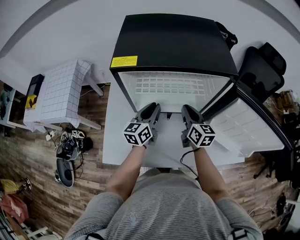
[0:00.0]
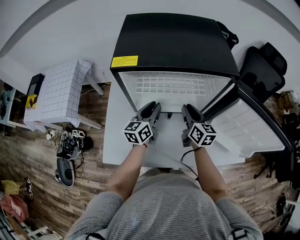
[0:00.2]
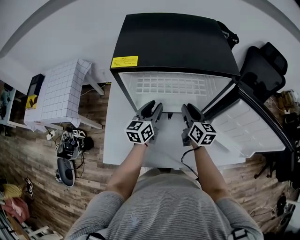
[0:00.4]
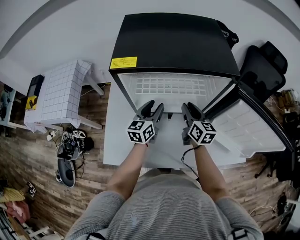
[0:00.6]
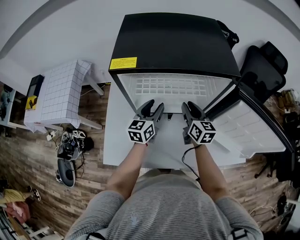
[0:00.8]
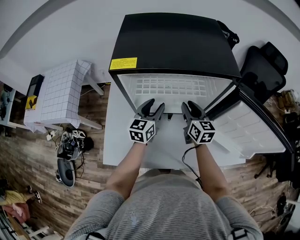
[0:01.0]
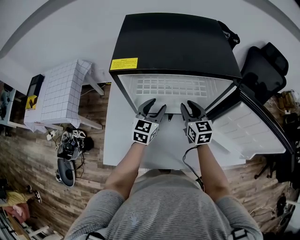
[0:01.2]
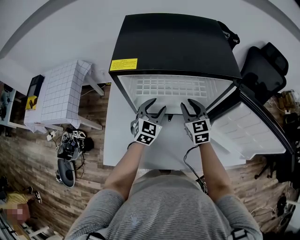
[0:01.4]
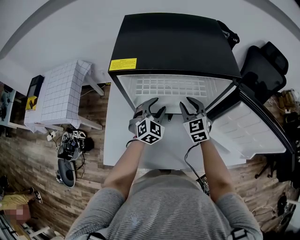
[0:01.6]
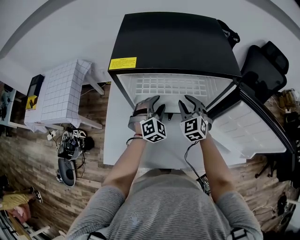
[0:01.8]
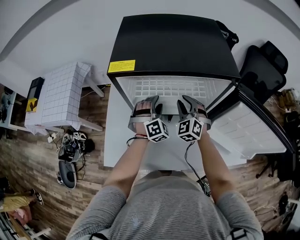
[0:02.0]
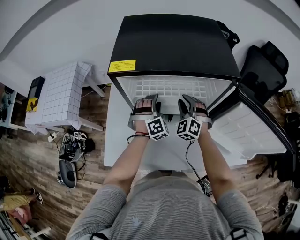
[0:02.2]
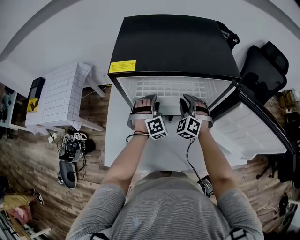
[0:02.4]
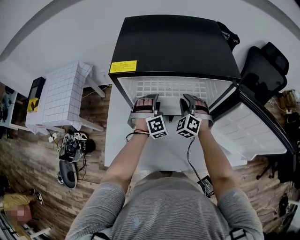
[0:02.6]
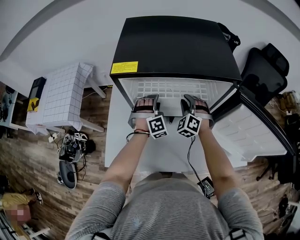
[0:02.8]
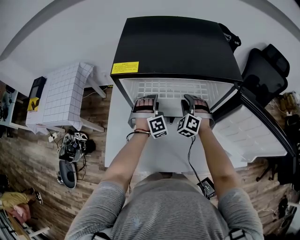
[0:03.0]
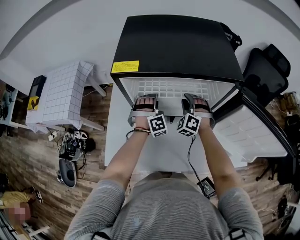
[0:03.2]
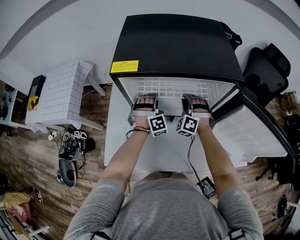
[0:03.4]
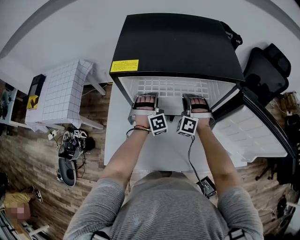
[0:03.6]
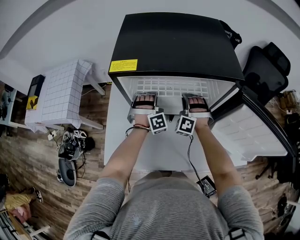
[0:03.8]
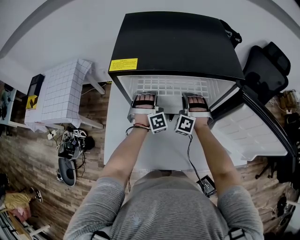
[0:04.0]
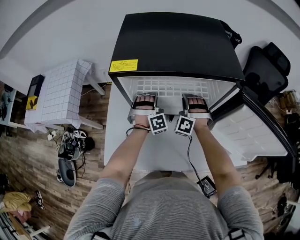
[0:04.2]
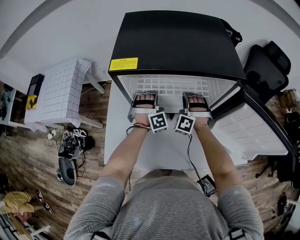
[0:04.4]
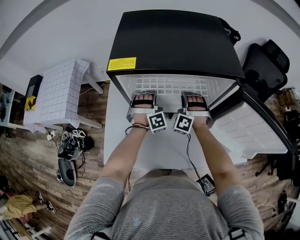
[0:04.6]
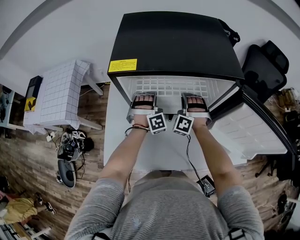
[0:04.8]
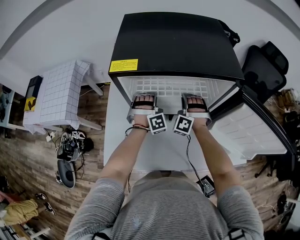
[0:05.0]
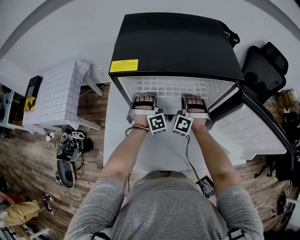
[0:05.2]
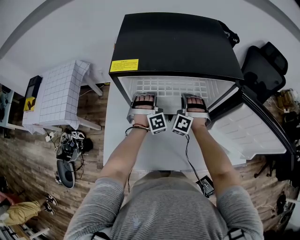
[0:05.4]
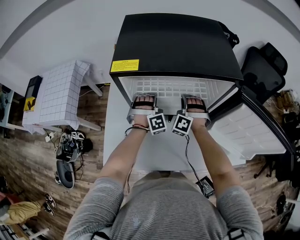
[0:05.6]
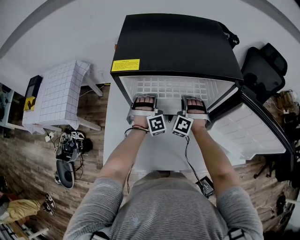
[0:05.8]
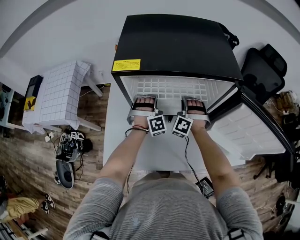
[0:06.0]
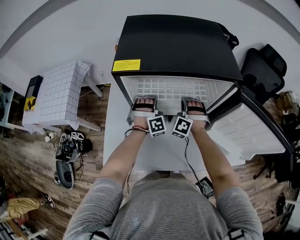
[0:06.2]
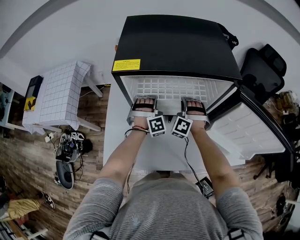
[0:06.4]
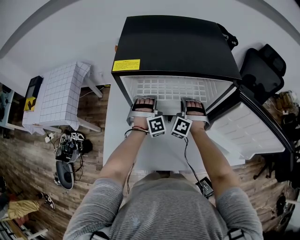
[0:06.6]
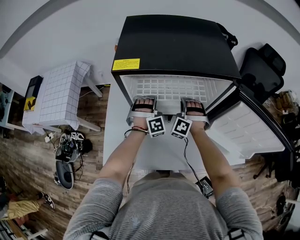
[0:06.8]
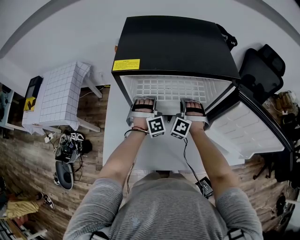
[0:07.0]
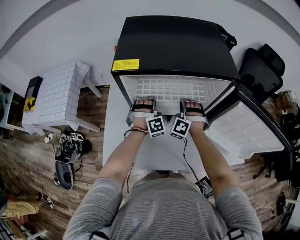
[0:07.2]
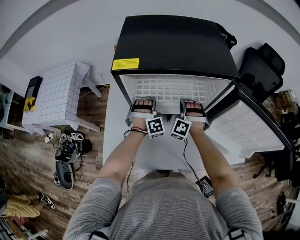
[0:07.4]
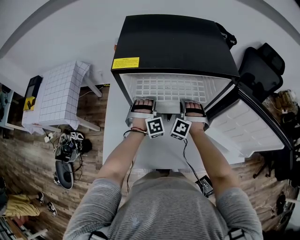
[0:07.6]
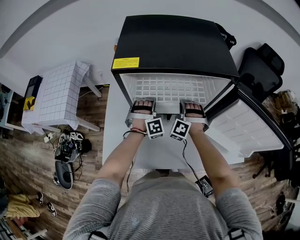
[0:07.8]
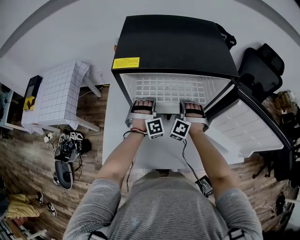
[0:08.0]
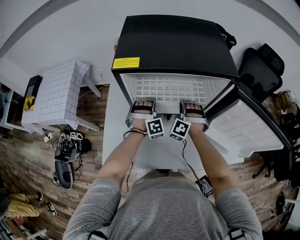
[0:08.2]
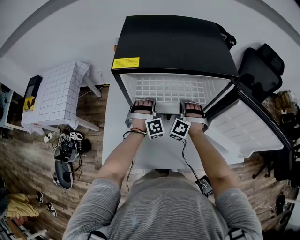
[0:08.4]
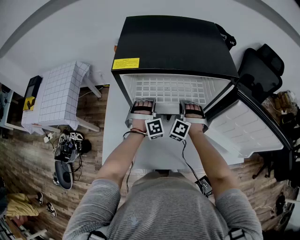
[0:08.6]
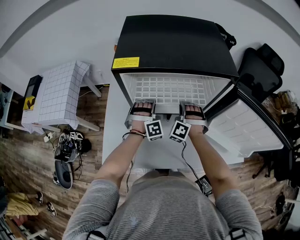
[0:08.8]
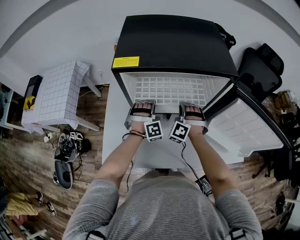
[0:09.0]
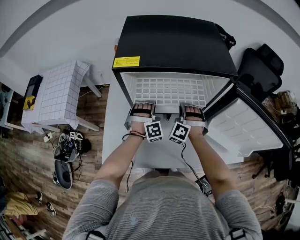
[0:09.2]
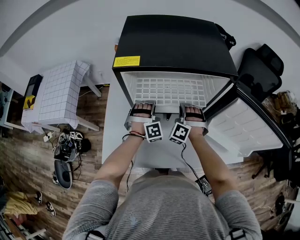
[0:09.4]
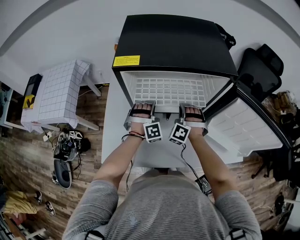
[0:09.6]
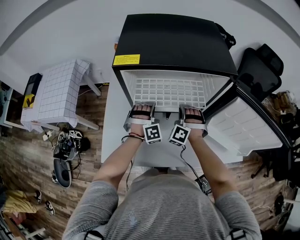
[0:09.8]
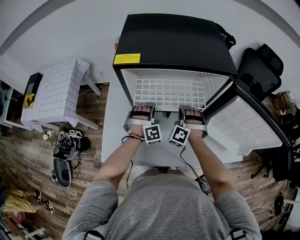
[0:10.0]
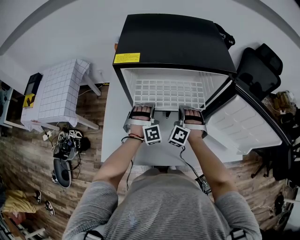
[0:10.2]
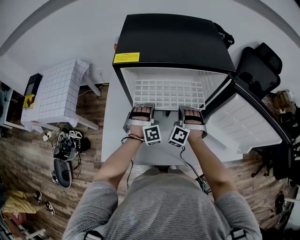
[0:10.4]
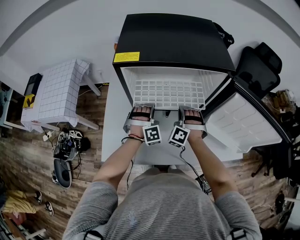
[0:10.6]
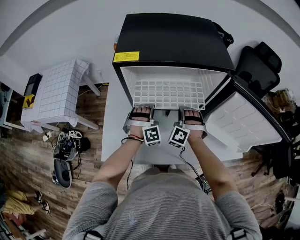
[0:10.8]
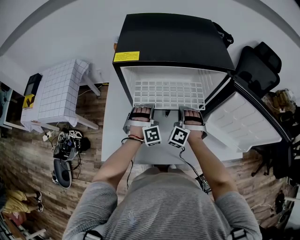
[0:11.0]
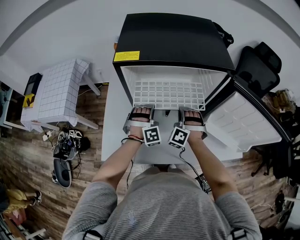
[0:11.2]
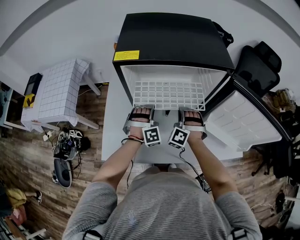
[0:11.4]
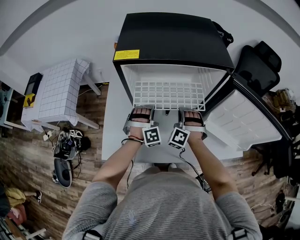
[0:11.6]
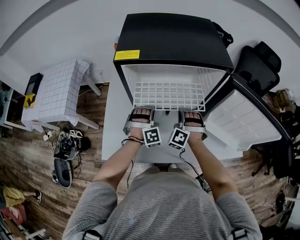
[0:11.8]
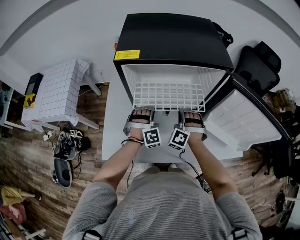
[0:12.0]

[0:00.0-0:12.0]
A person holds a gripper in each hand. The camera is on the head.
0:00.0 to 0:01.6: The left gripper rolls clockwise, seen from behind, by roughly 60 degrees, and opens; the right gripper twists some 40 degrees counterclockwise, seen from behind, and opens.
0:01.6 to 0:03.0: The right gripper ends up roughly 5 cm from where it was, and twists some 40 degrees counterclockwise, seen from behind. Meanwhile the left gripper moves about 5 cm, and rotates some 40 degrees.
0:03.0 to 0:04.4: The left gripper closes its fingers. Meanwhile the right gripper changes its angle by about 20 degrees.
0:04.4 to 0:09.0: The grippers stay close to where they were, moving slightly.
0:09.0 to 0:10.4: The grippers make only small movements.
0:10.4 to 0:12.0: The grippers make only small movements.

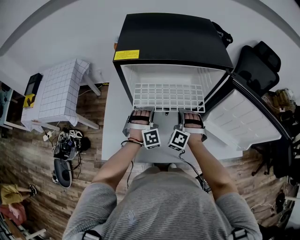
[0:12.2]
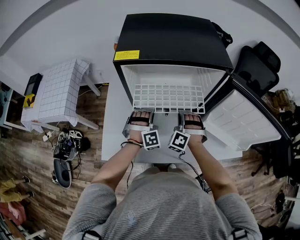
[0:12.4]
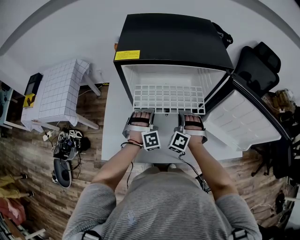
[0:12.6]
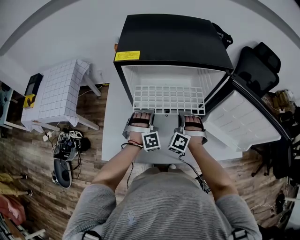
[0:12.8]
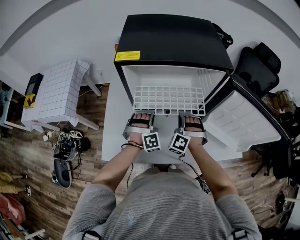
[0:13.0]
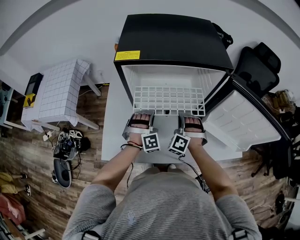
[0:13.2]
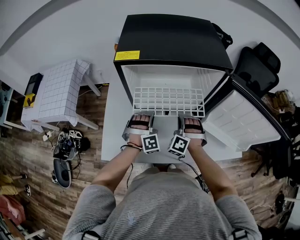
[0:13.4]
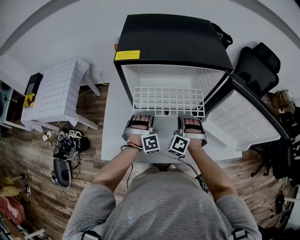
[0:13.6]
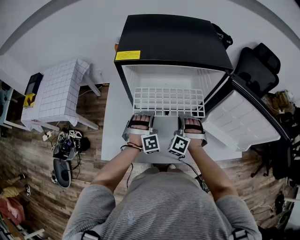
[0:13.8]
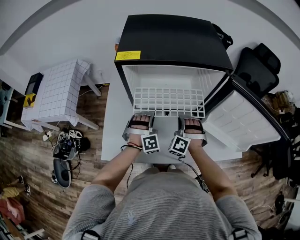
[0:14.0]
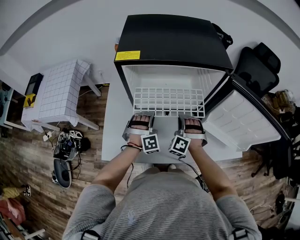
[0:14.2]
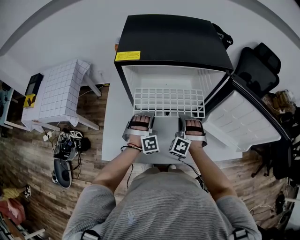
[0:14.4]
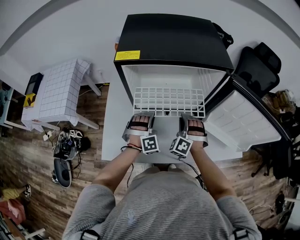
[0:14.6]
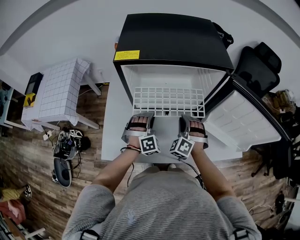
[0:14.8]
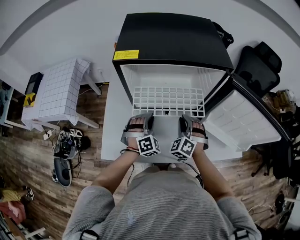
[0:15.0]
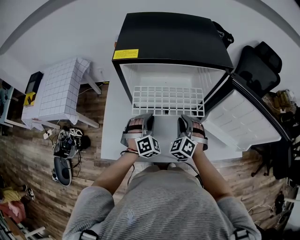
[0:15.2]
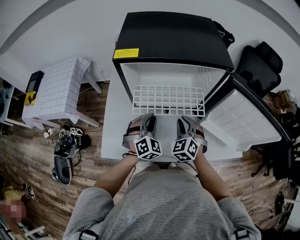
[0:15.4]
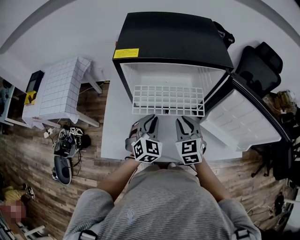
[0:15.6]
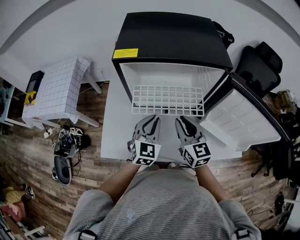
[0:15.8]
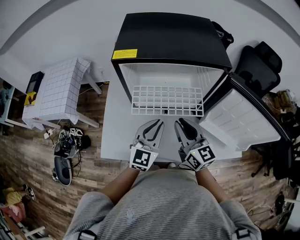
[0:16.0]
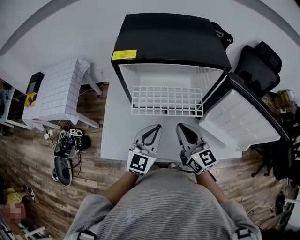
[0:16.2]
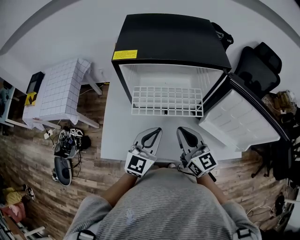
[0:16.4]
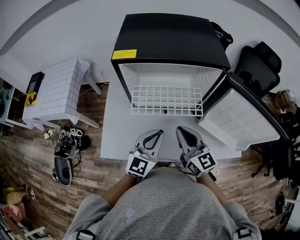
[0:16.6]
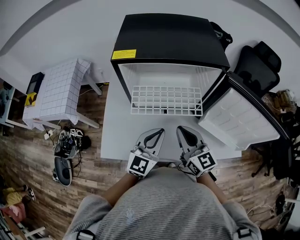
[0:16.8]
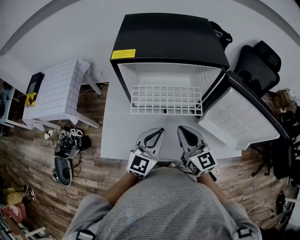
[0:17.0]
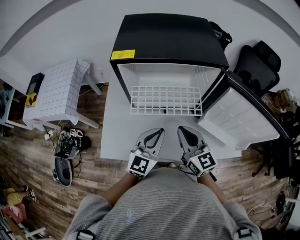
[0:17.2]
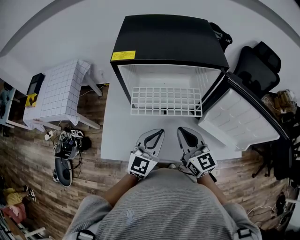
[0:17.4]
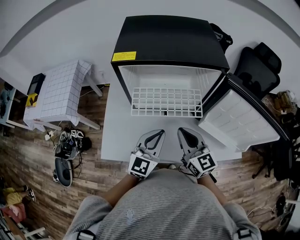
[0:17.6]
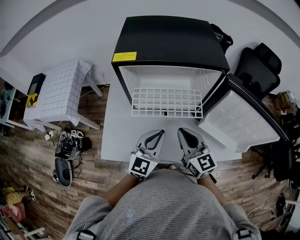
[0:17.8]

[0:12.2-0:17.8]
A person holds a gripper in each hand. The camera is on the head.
0:12.2 to 0:13.6: There are only small adjustments of the grippers.
0:13.6 to 0:15.0: The right gripper swivels roughly 20 degrees.
0:15.0 to 0:16.4: The two grippers go approximately 15 cm upward and backward. The left gripper rotates around the line of its fingers by some 60 degrees, counterclockwise from behind, while the right gripper rotates around the line of its fingers by approximately 60 degrees, clockwise from behind.
0:16.4 to 0:17.8: The grippers move only a little.

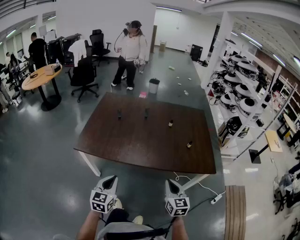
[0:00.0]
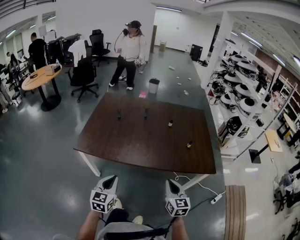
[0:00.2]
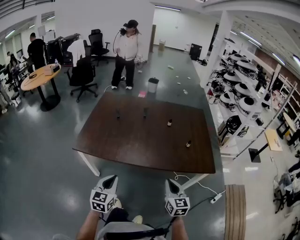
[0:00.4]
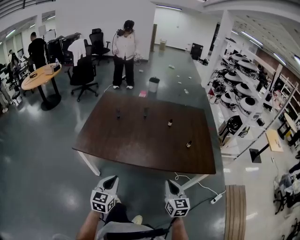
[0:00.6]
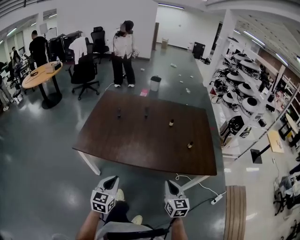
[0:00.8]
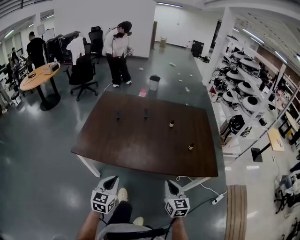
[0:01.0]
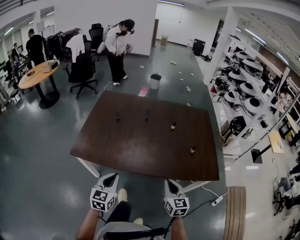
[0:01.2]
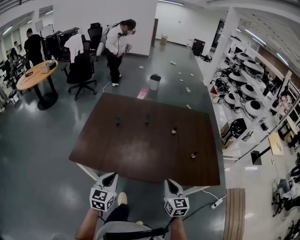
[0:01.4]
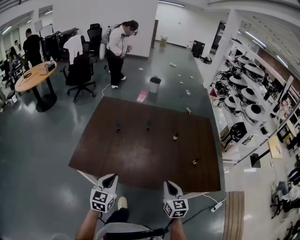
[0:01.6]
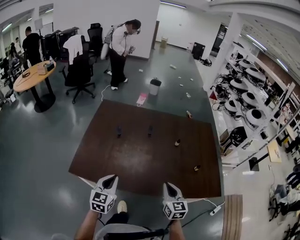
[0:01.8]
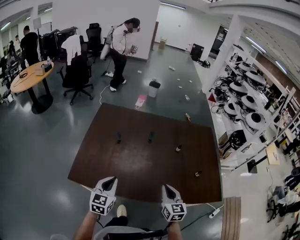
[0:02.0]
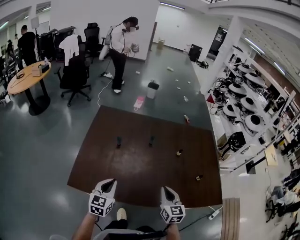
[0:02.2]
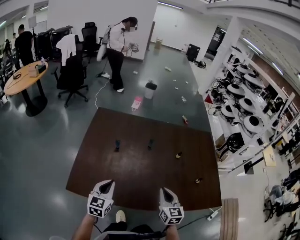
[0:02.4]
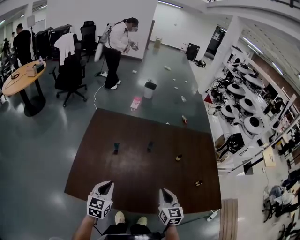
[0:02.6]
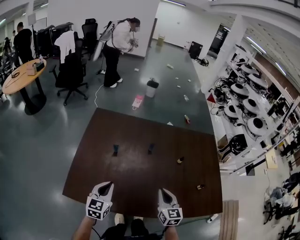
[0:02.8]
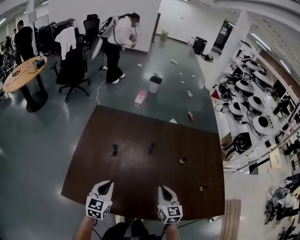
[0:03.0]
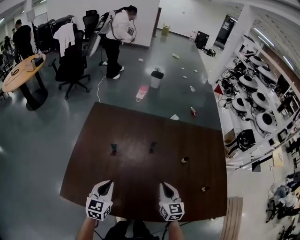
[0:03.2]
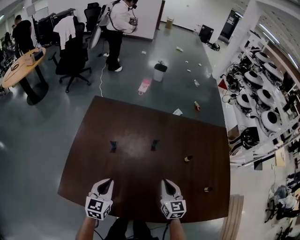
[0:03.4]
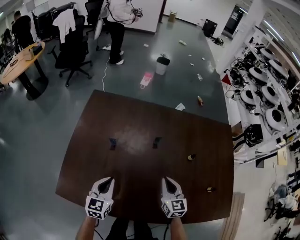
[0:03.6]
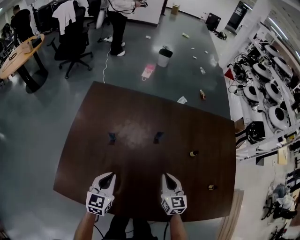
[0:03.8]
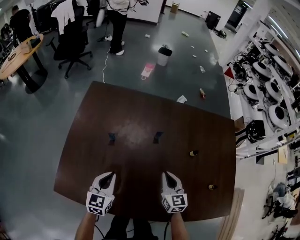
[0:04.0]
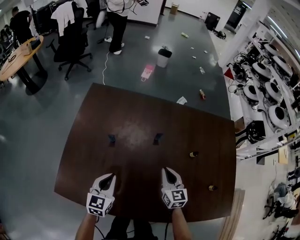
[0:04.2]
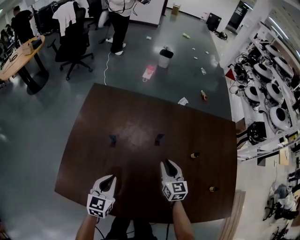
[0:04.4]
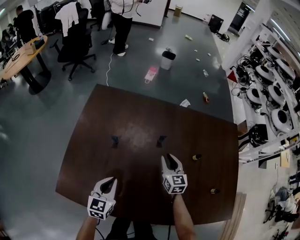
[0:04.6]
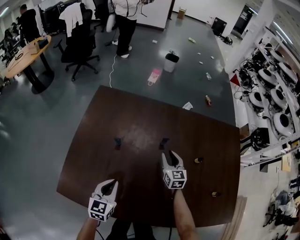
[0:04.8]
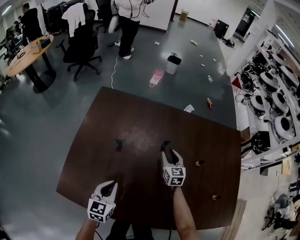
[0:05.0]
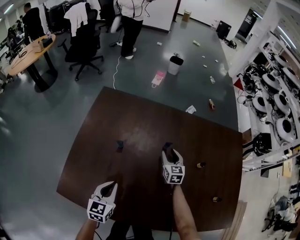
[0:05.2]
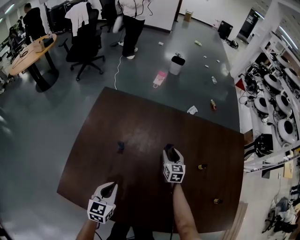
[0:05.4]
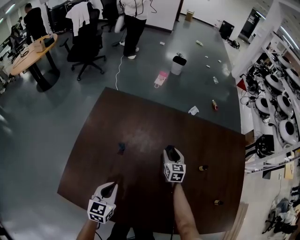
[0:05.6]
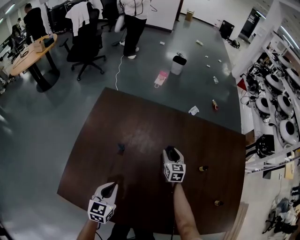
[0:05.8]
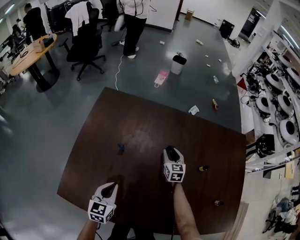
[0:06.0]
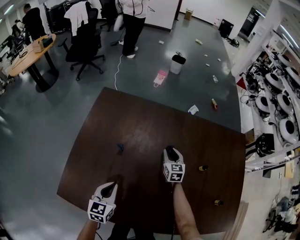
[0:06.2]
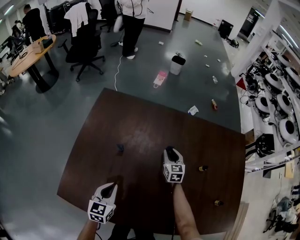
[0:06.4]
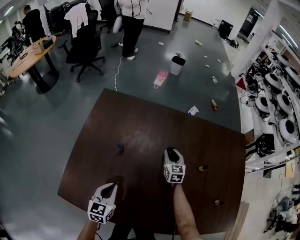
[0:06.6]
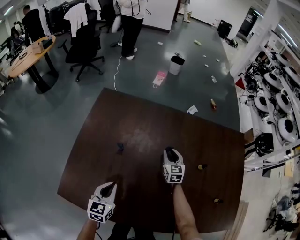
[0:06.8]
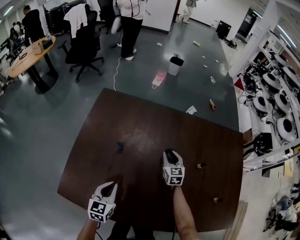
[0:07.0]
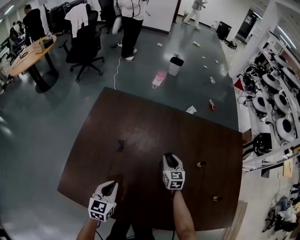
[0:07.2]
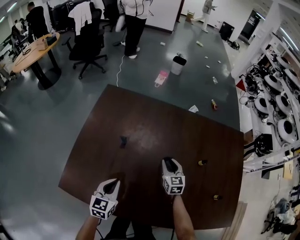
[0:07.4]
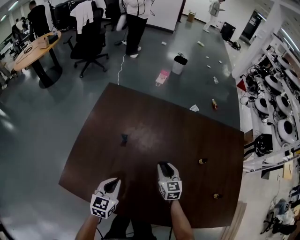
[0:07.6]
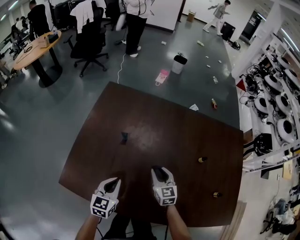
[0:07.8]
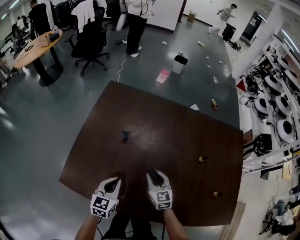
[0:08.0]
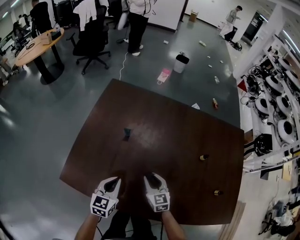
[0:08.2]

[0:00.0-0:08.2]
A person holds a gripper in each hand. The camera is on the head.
0:00.0 to 0:01.6: The two grippers go some 15 cm forward.
0:01.6 to 0:03.2: Both grippers travel together forward, approximately 20 cm.
0:03.2 to 0:05.0: The left gripper heads downward, covering approximately 5 cm. Meanwhile the right gripper moves forward and downward, approximately 25 cm, and opens its fingers.
0:05.0 to 0:06.6: The right gripper changes place by about 5 cm.
0:06.6 to 0:08.2: The right gripper moves backward and to the left, approximately 25 cm. Meanwhile the left gripper heads backward, covering some 5 cm.
